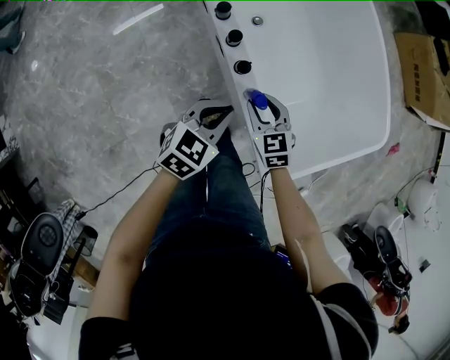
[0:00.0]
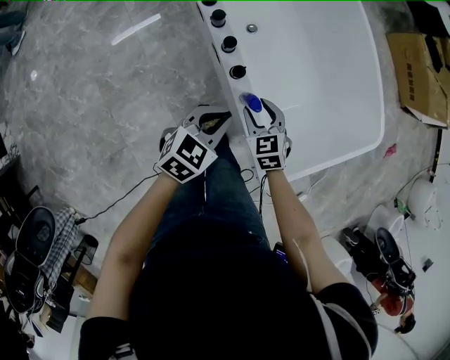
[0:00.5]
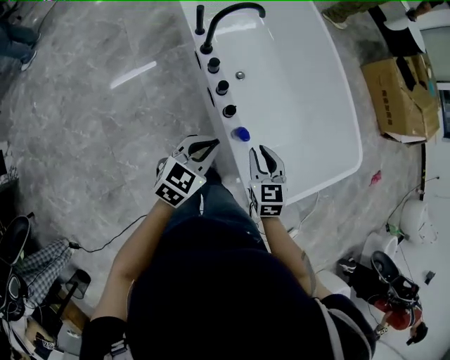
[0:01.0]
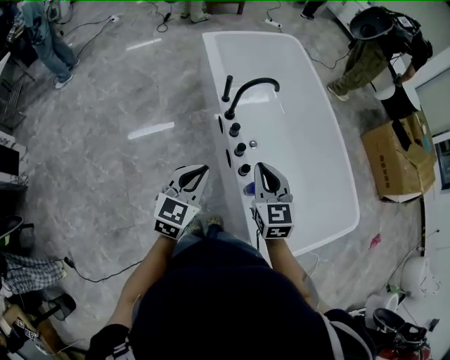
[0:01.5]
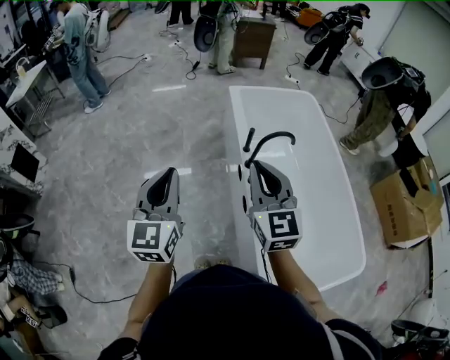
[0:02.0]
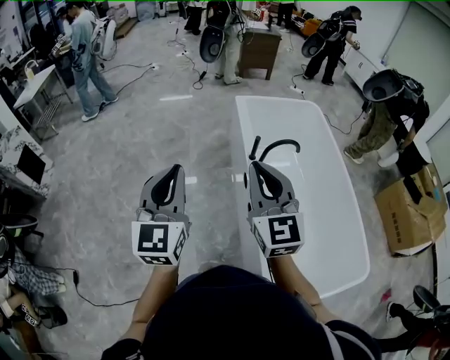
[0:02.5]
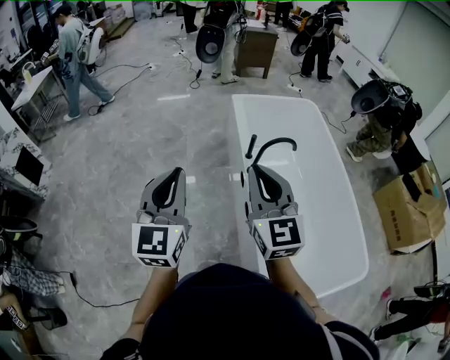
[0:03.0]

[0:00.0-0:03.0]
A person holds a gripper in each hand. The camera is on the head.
0:00.0 to 0:01.5: The left gripper shifts approximately 25 cm upward and to the left, and rotates some 30 degrees, while the right gripper travels upward by approximately 30 cm, swivels about 20 degrees, and closes.
0:01.5 to 0:03.0: The two grippers go roughly 25 cm upward and to the left. The left gripper changes its angle by some 40 degrees, while the right gripper changes its angle by roughly 30 degrees.

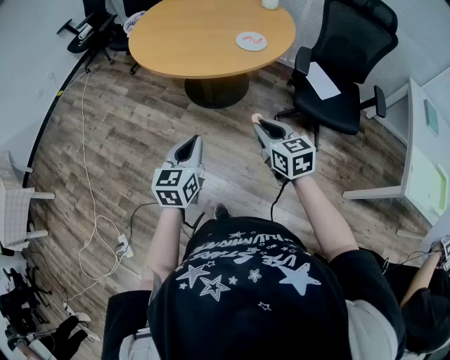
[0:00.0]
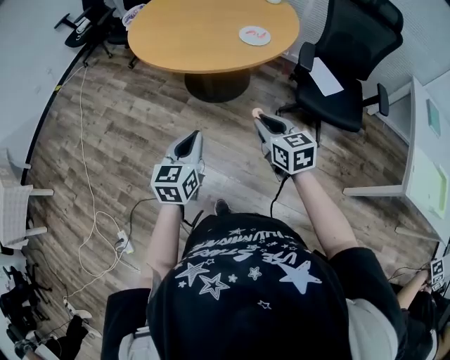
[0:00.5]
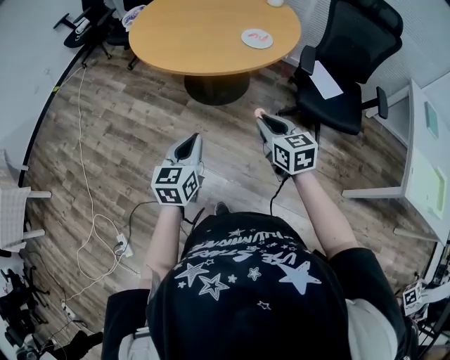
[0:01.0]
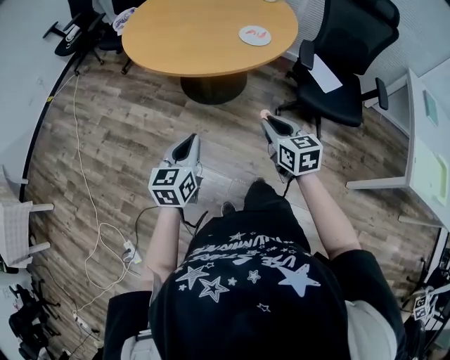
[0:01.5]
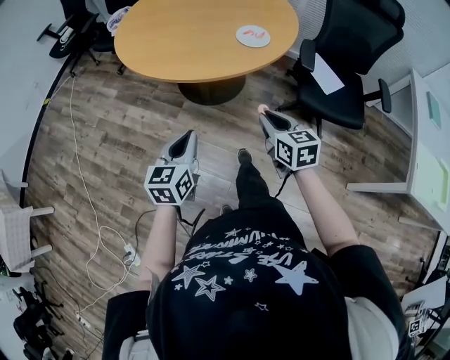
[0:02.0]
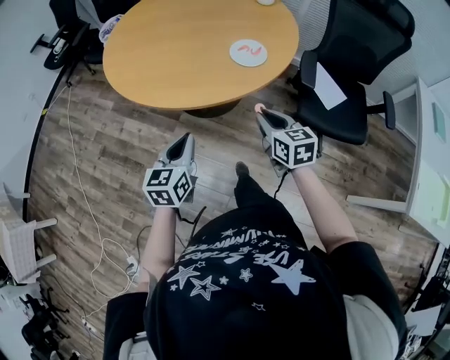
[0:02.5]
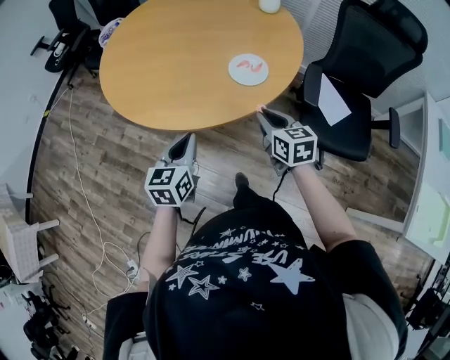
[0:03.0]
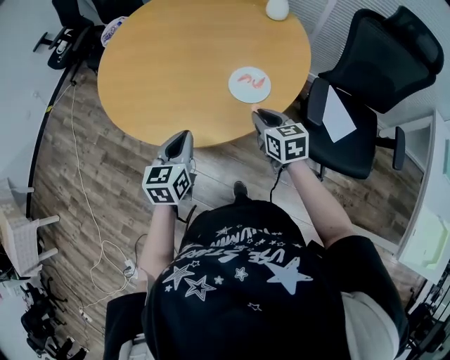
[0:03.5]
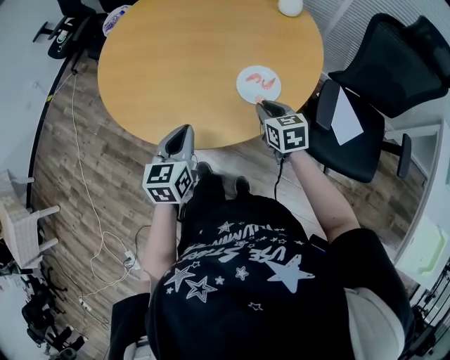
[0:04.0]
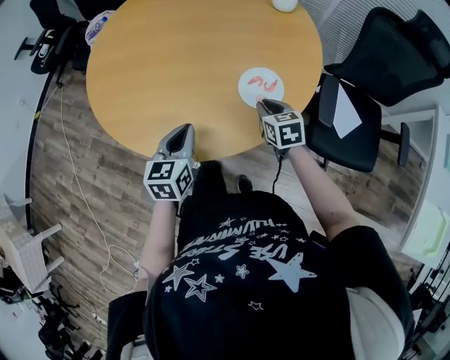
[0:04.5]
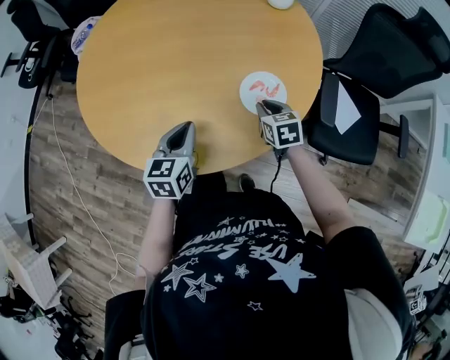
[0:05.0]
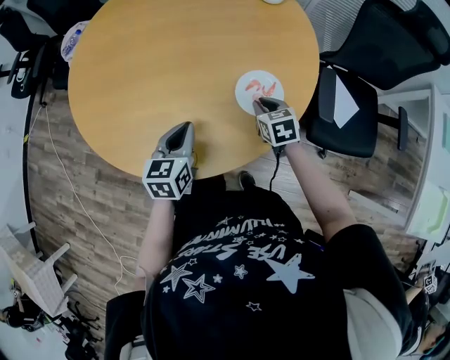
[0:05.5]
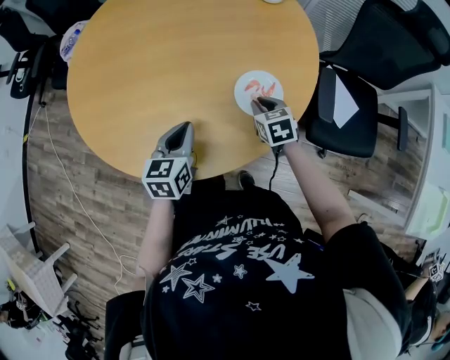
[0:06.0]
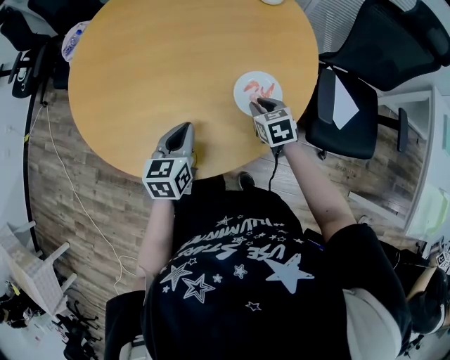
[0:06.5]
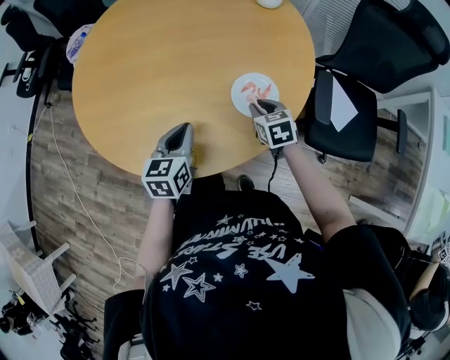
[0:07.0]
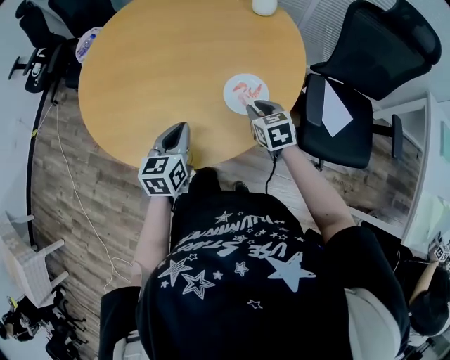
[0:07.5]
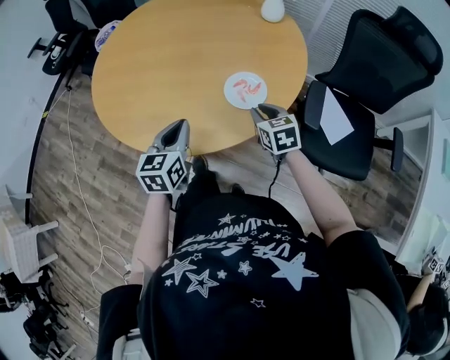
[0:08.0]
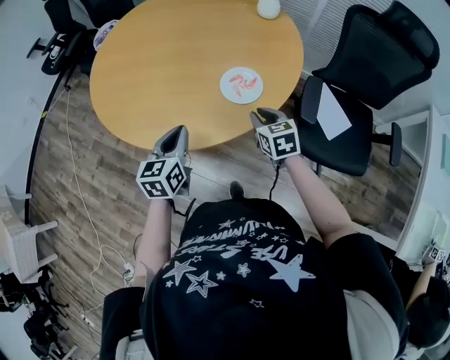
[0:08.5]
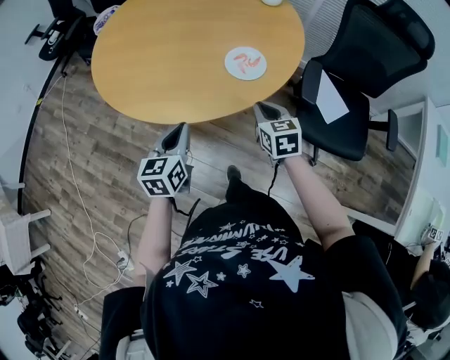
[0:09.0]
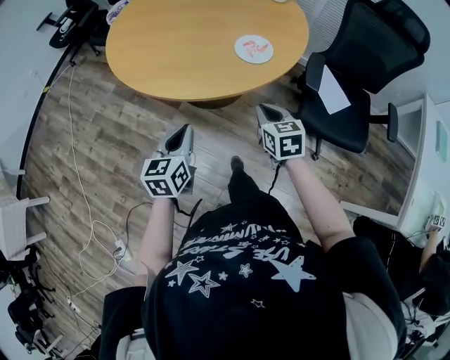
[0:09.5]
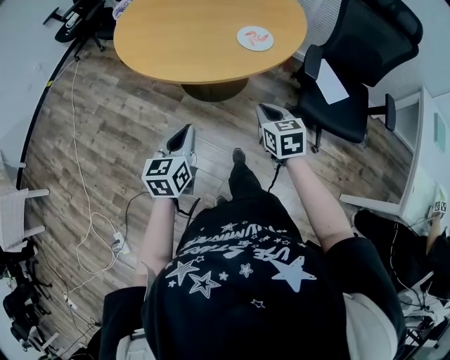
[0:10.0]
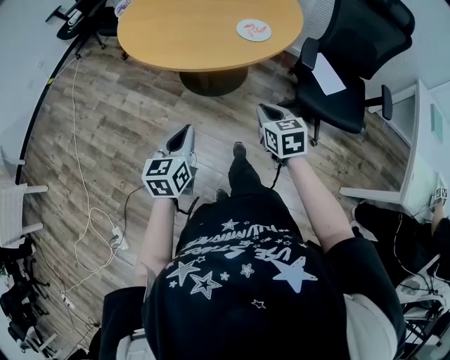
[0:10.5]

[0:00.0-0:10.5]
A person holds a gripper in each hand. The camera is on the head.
0:00.0 to 0:02.0: Both grippers move forward, roughly 10 cm.
0:02.0 to 0:04.0: The two grippers go approximately 35 cm forward.
0:04.0 to 0:06.5: The right gripper goes roughly 10 cm downward and forward. The left gripper travels forward and downward by roughly 15 cm.
0:06.5 to 0:08.5: The two grippers go some 15 cm backward and upward.
0:08.5 to 0:10.5: Both grippers move backward, some 30 cm.

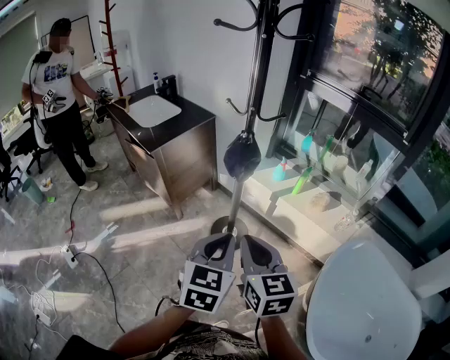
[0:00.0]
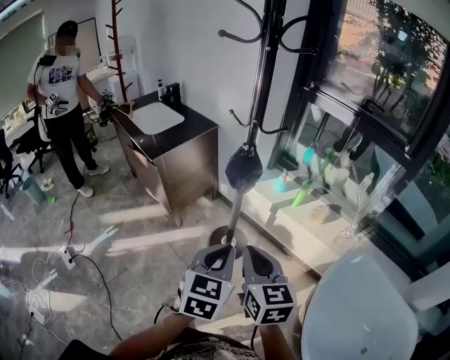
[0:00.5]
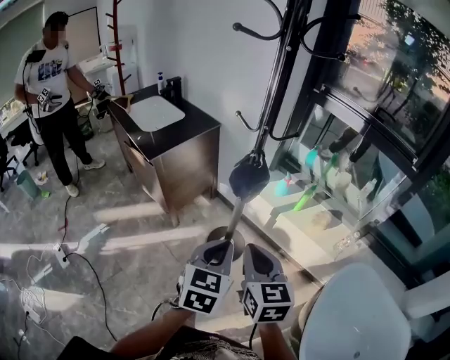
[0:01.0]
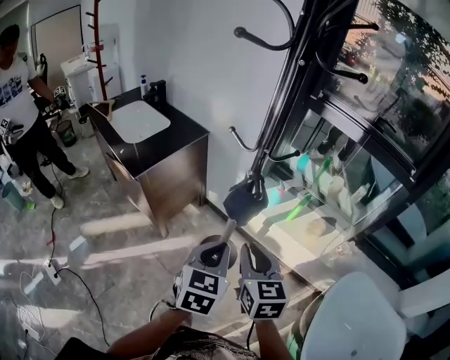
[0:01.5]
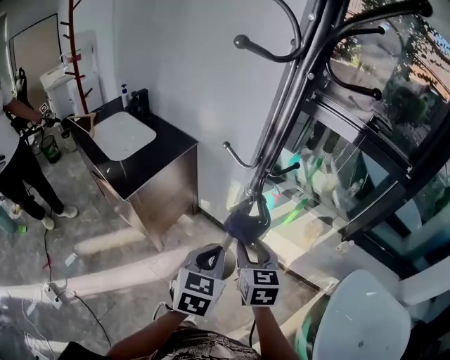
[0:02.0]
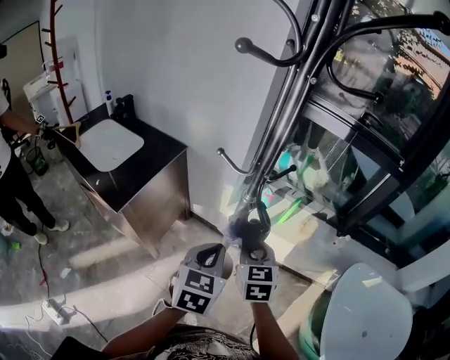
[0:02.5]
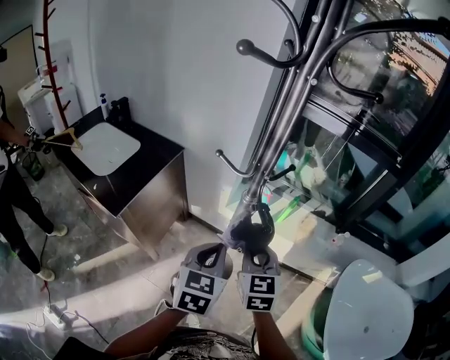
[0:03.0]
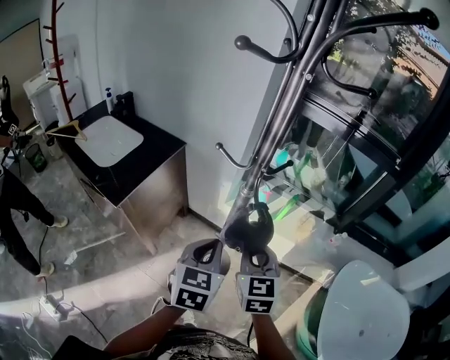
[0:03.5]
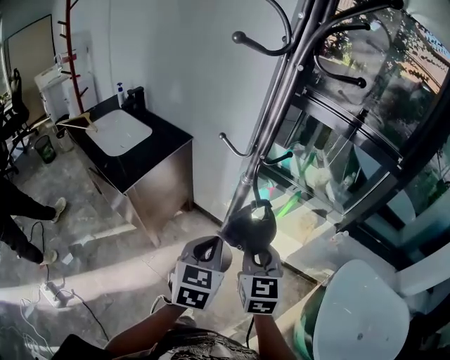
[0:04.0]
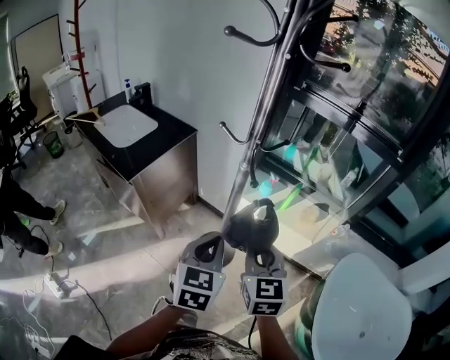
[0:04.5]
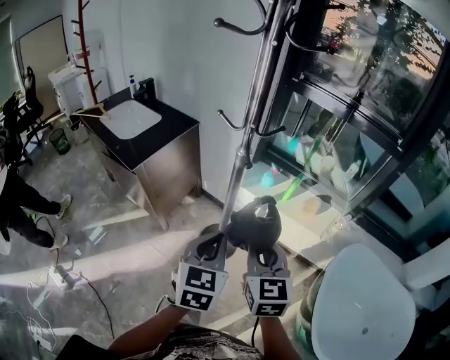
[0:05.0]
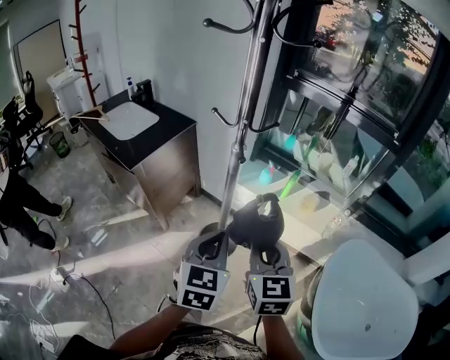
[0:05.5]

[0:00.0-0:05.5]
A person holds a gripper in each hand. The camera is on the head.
0:00.0 to 0:02.0: Both grippers travel together forward, about 25 cm. The right gripper opens up.
0:02.0 to 0:03.5: The right gripper closes.
0:03.5 to 0:05.5: Both grippers move backward and to the right, roughly 15 cm.

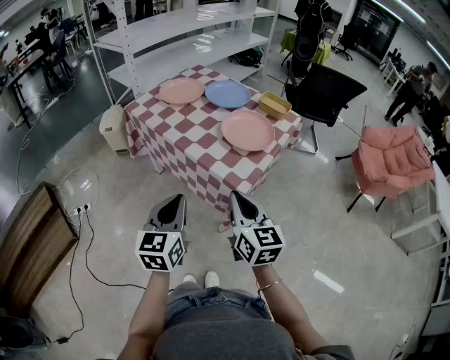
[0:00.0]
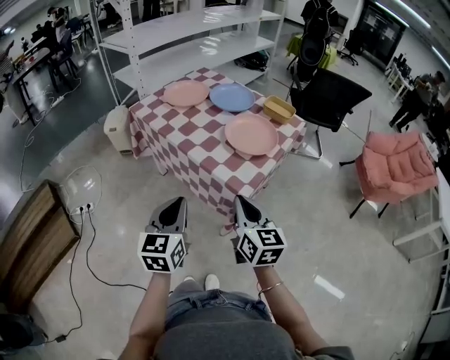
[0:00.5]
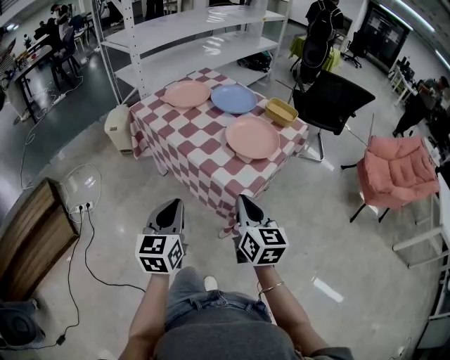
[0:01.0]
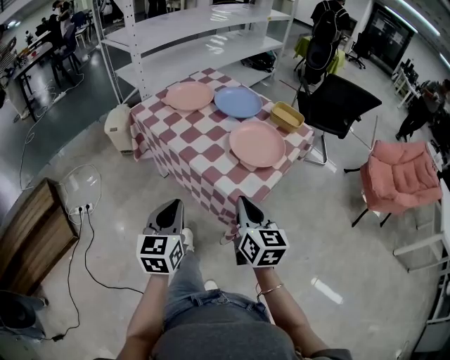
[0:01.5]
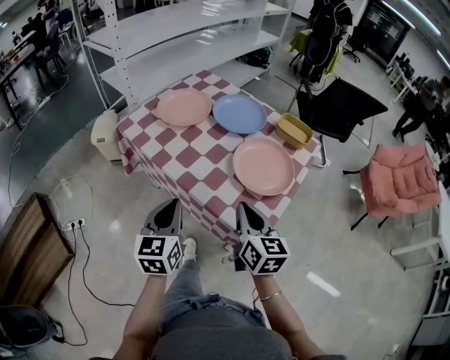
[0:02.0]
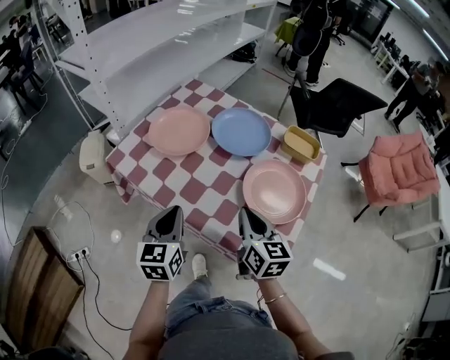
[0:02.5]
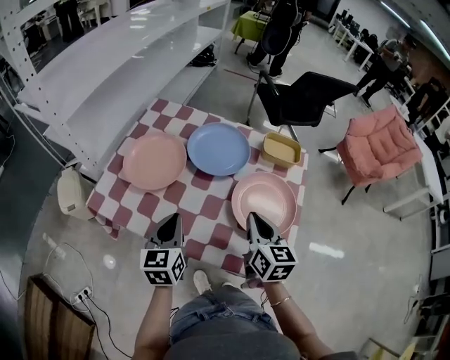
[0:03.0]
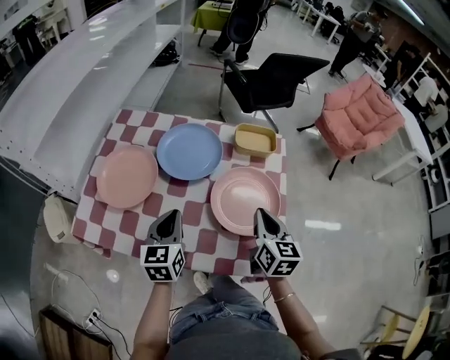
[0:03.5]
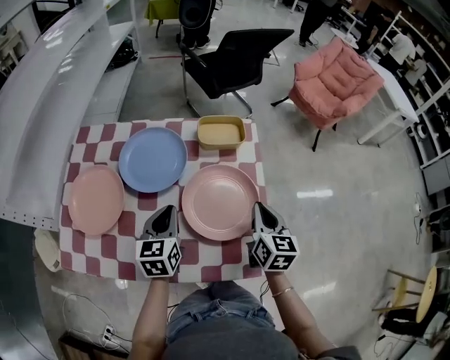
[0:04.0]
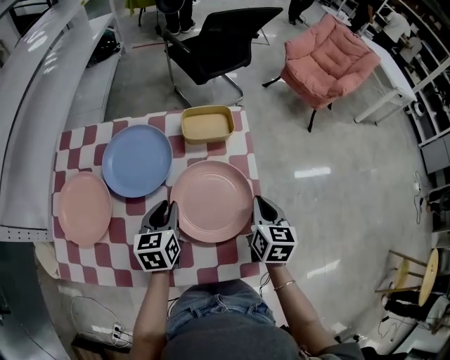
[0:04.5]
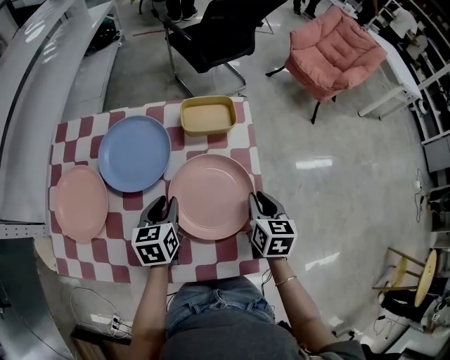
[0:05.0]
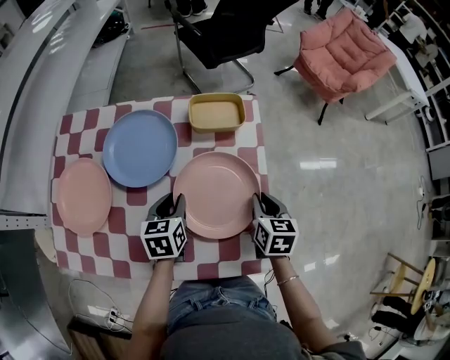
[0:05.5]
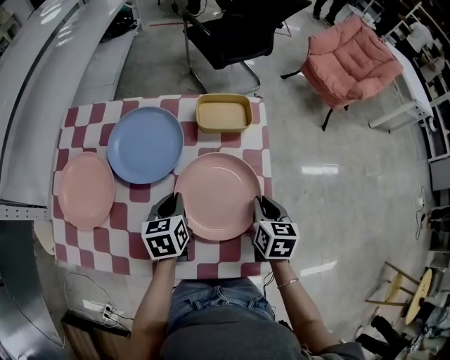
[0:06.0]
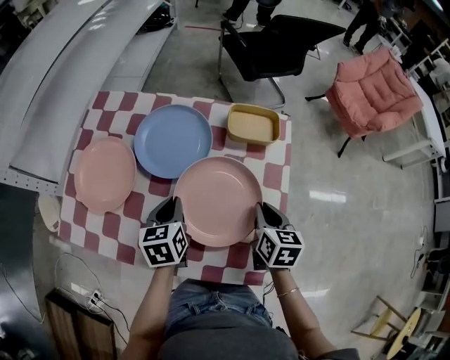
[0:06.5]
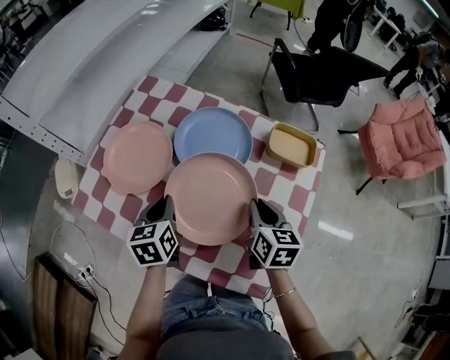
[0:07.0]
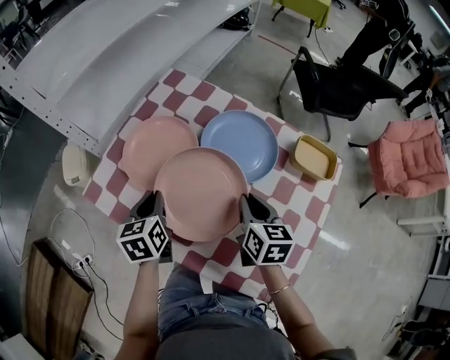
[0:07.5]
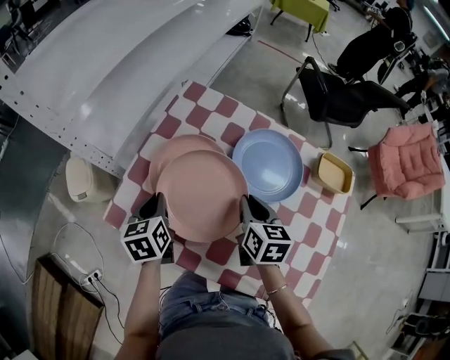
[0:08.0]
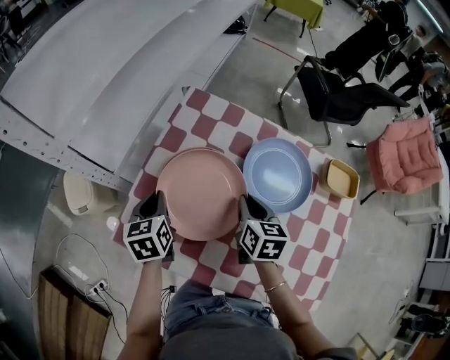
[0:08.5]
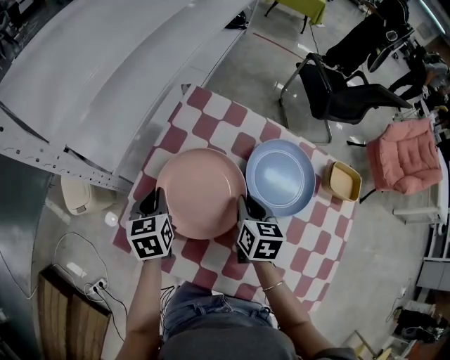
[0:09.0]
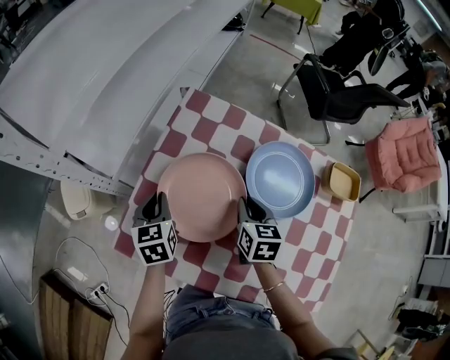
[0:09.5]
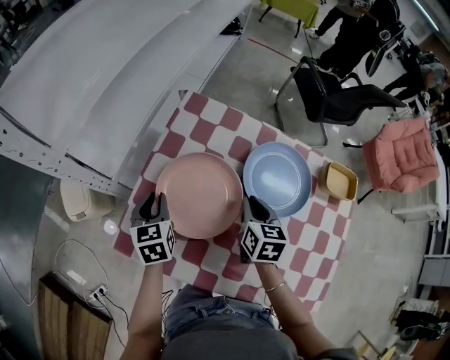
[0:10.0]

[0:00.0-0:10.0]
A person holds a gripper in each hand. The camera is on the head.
0:00.0 to 0:02.0: Both grippers move forward, roughly 20 cm.
0:02.0 to 0:04.0: The right gripper shifts by approximately 20 cm, and turns by approximately 50 degrees. Meanwhile the left gripper changes place by about 35 cm, and swivels approximately 40 degrees.
0:04.0 to 0:06.0: Both grippers move downward, roughly 10 cm. The left gripper opens, then closes once more.
0:06.0 to 0:08.0: The left gripper ends up roughly 40 cm from where it was, and turns by approximately 30 degrees. The right gripper ends up some 40 cm from where it was, and changes its angle by approximately 30 degrees.
0:08.0 to 0:10.0: The grippers both shift forward by roughly 5 cm.
